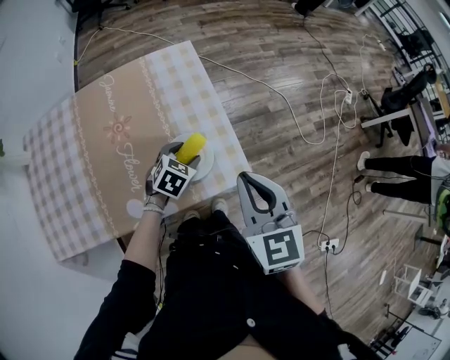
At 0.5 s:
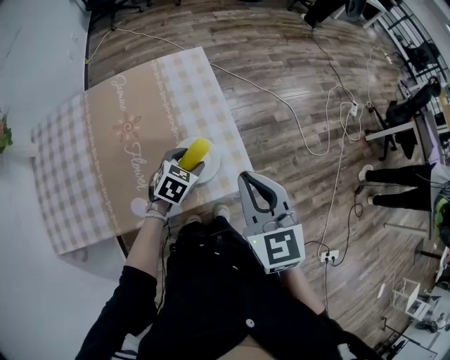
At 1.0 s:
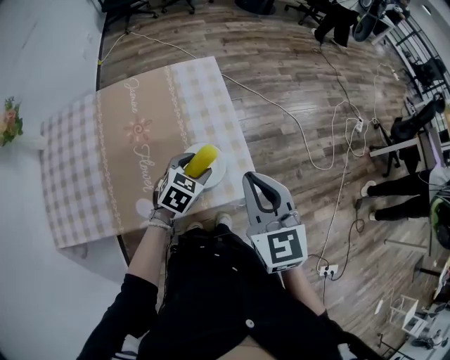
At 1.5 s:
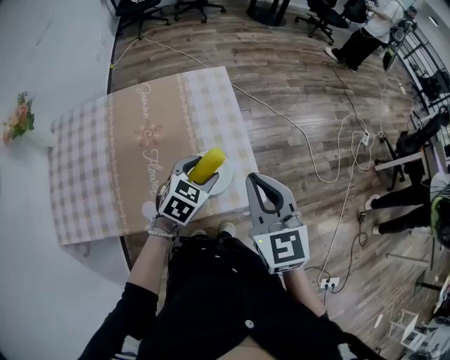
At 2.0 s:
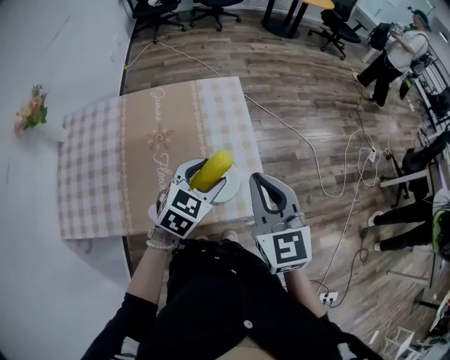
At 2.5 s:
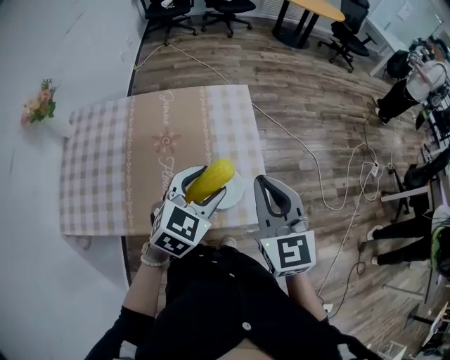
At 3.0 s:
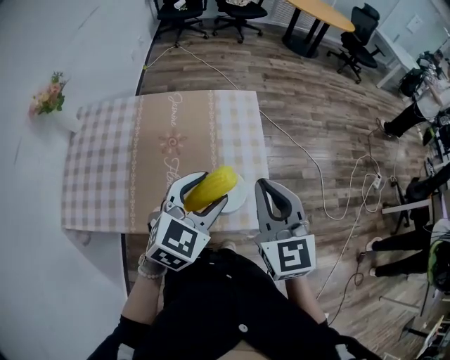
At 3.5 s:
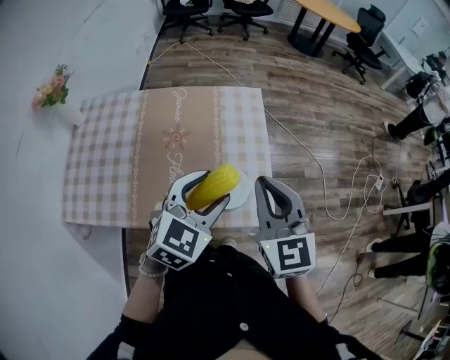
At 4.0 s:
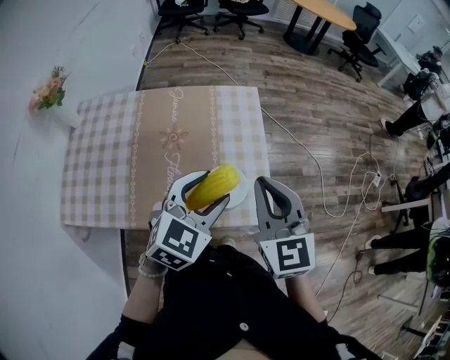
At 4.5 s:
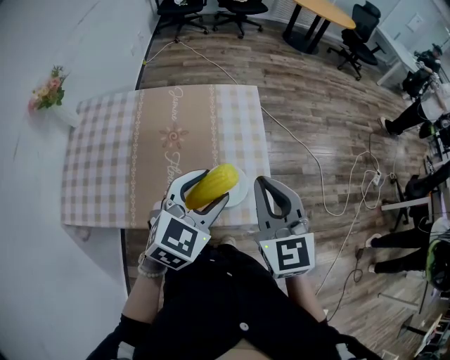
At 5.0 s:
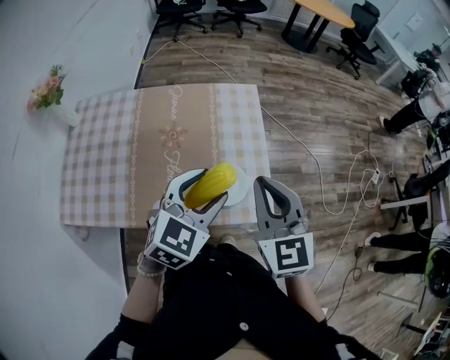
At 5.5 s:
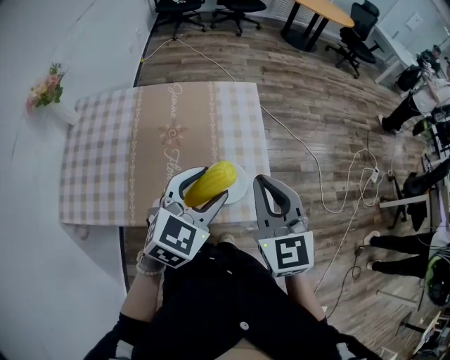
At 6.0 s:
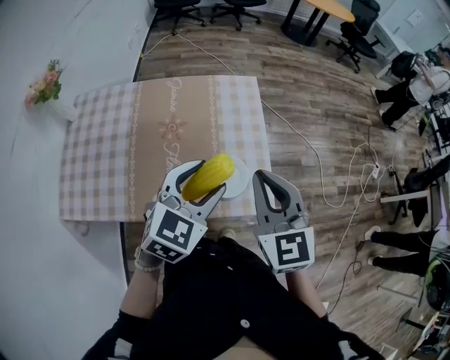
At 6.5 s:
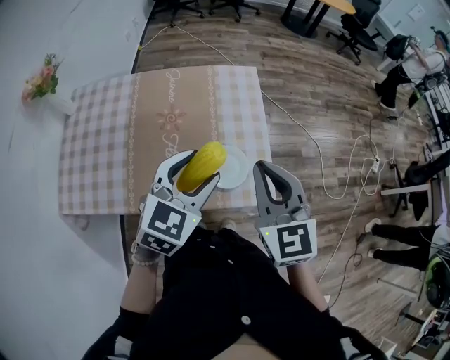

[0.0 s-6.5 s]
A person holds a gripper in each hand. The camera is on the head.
0.0 to 2.0 s: The right gripper changes place by roughly 10 cm; the left gripper heads upward, covering approximately 15 cm.
2.0 to 4.5 s: The left gripper is displaced upward by about 10 cm.
4.5 to 6.5 s: There are only small adjustments of the grippers.

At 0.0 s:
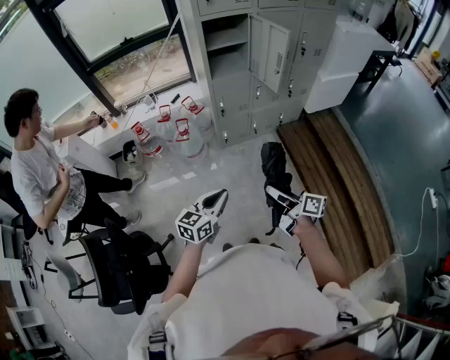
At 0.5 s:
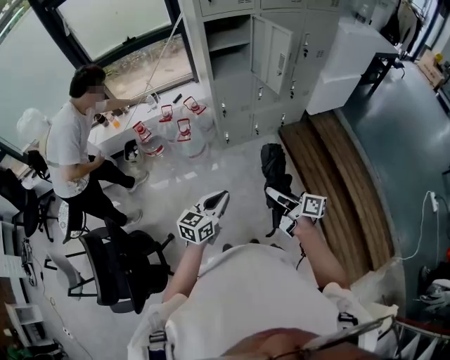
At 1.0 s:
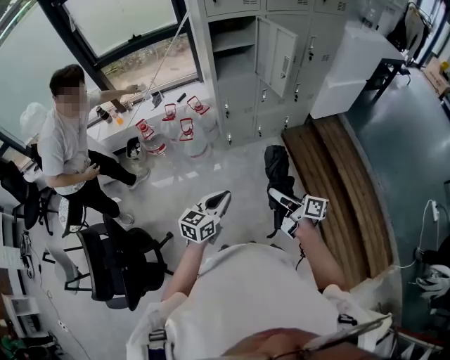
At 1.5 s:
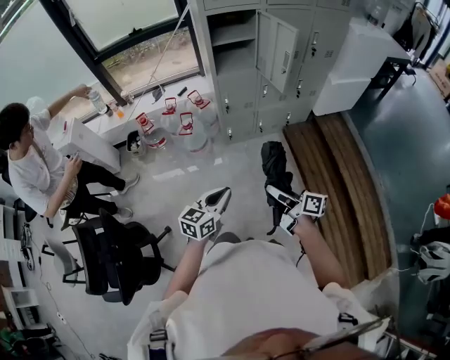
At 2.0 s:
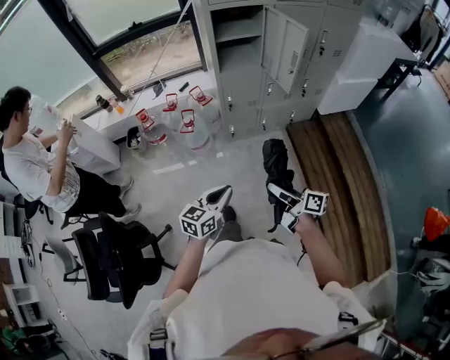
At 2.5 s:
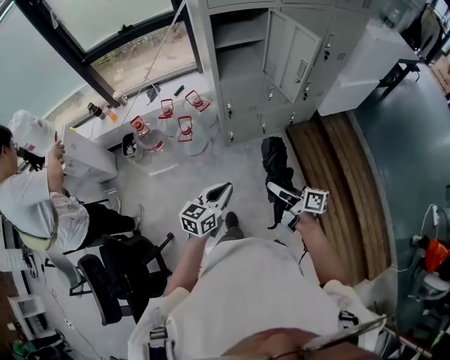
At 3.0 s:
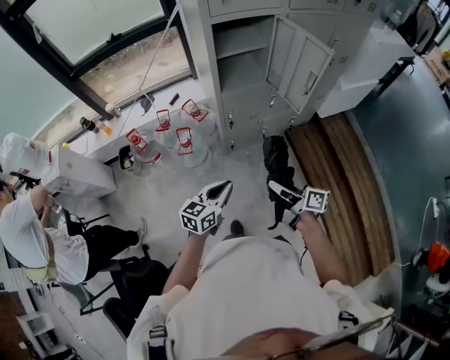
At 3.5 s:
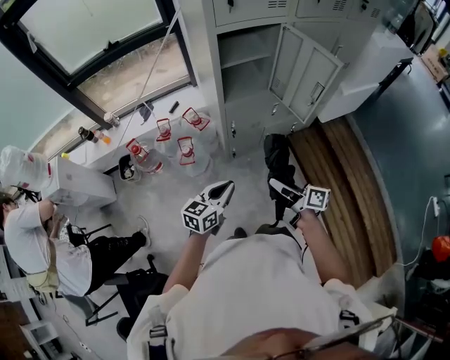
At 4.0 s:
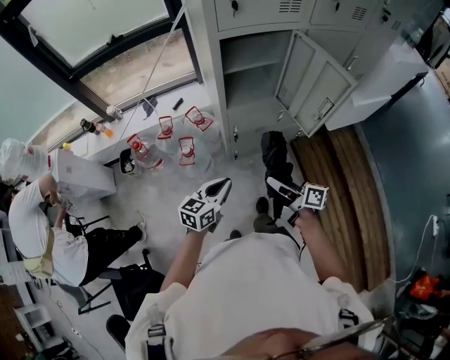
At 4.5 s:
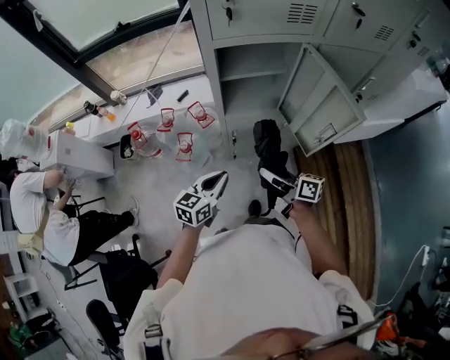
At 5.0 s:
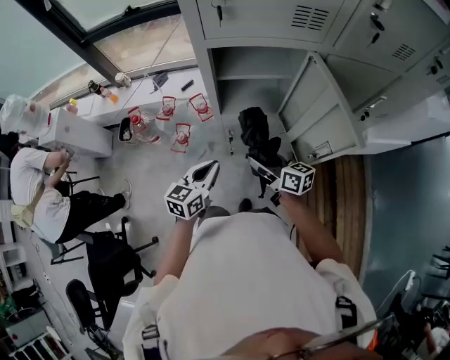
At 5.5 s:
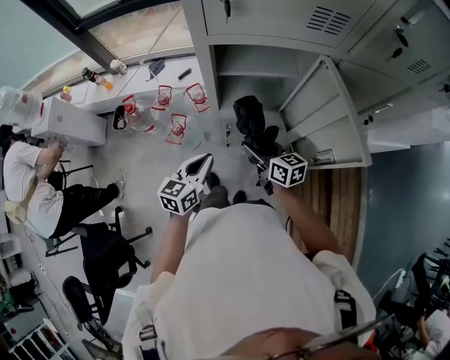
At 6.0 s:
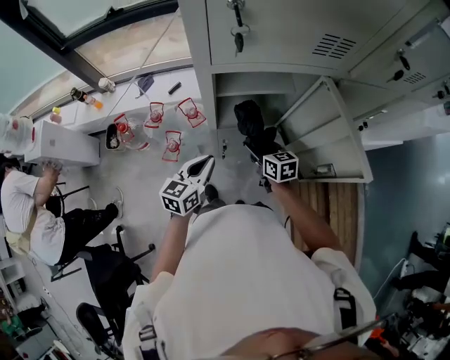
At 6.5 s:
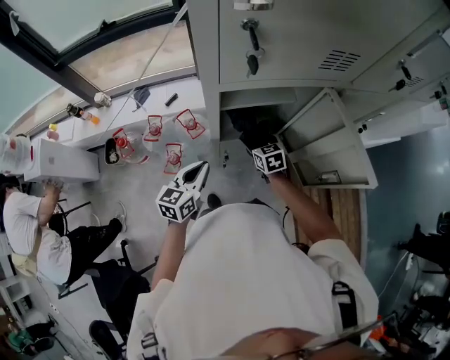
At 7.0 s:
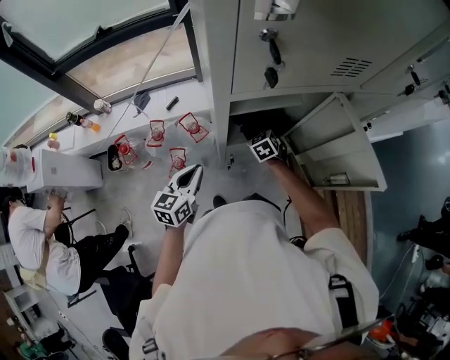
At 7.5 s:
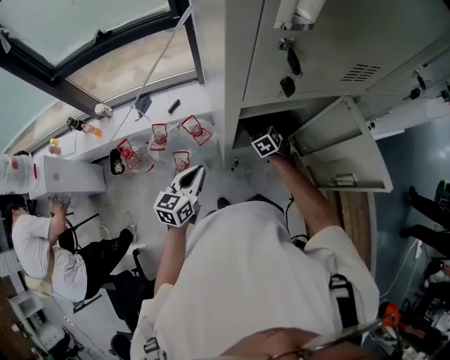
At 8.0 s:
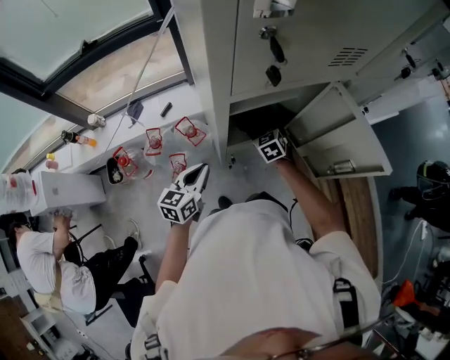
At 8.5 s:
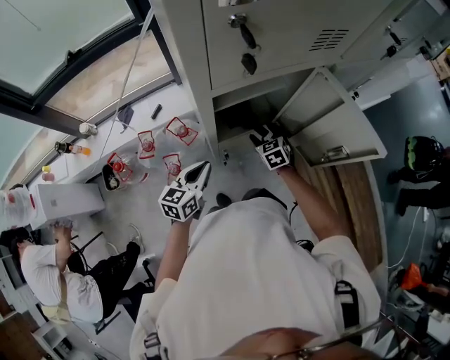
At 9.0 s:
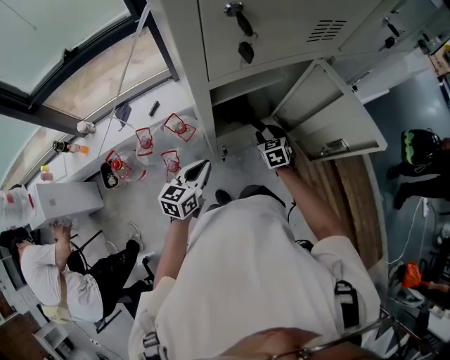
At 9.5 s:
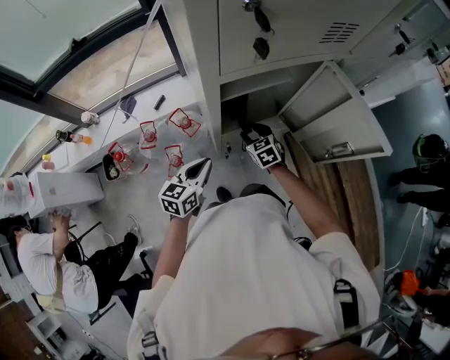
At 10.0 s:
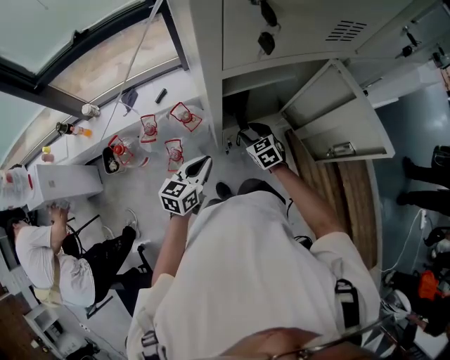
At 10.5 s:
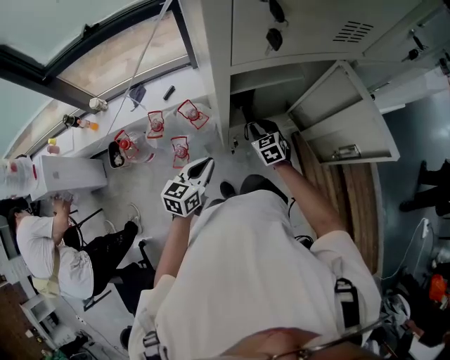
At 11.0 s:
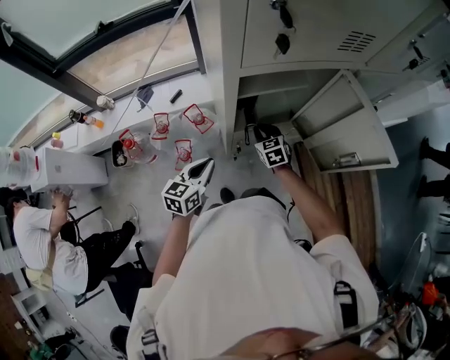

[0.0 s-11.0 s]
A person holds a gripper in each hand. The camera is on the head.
0.0 to 2.0 s: The two grippers go about 5 cm forward.
2.0 to 3.5 s: The two grippers go about 25 cm forward.
3.5 to 5.5 s: Both grippers move forward, some 25 cm. The right gripper turns by about 40 degrees, while the left gripper swivels approximately 30 degrees.
5.5 to 7.5 s: The right gripper travels forward and downward by about 25 cm, and changes its angle by about 50 degrees. The left gripper moves forward and to the left, some 15 cm.
7.5 to 9.0 s: The left gripper is displaced to the right by roughly 5 cm, while the right gripper goes approximately 15 cm to the right and backward, rotates some 20 degrees, and closes up.
9.0 to 11.0 s: The right gripper goes roughly 10 cm to the left, and closes.

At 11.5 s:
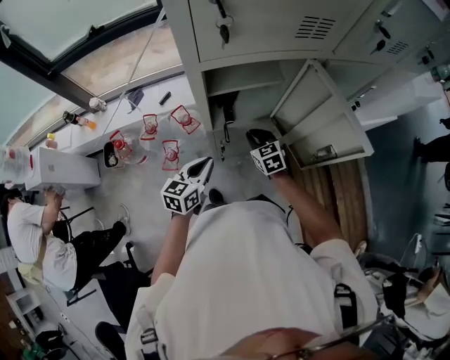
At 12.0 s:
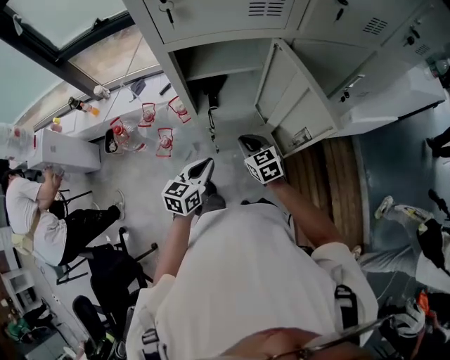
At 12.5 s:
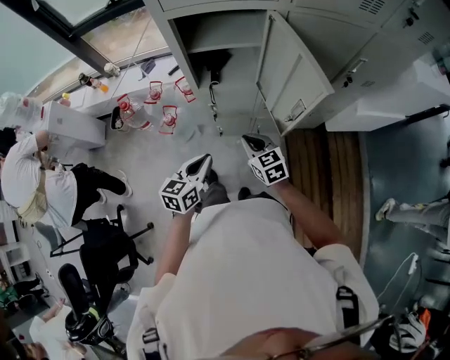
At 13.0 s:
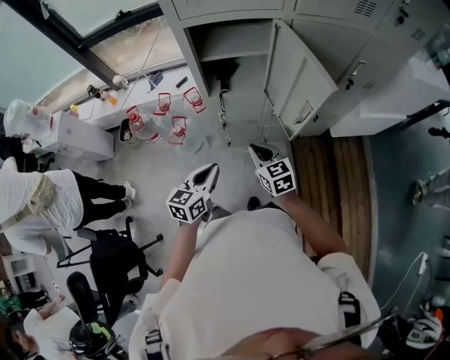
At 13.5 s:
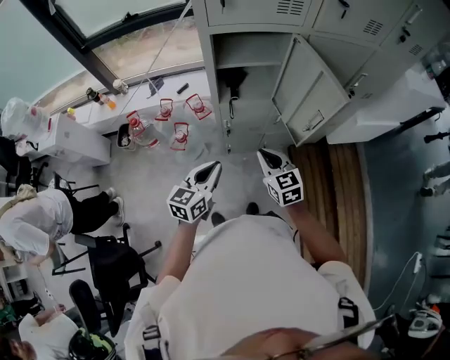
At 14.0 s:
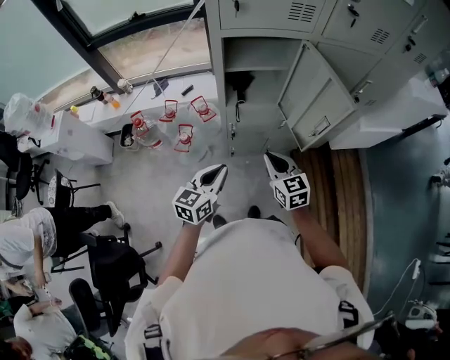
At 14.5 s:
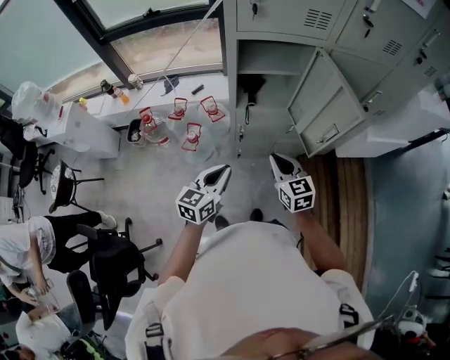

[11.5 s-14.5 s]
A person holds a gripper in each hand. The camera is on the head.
11.5 to 13.0 s: Both grippers travel together backward, about 20 cm.
13.0 to 14.5 s: The right gripper travels upward by about 5 cm, while the left gripper moves to the left, approximately 5 cm.

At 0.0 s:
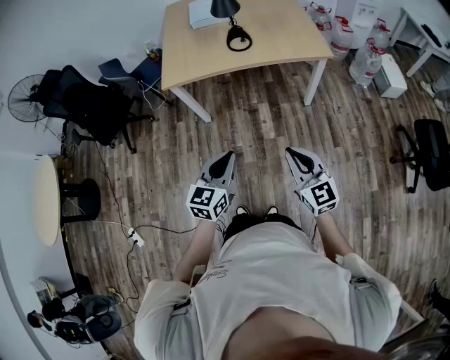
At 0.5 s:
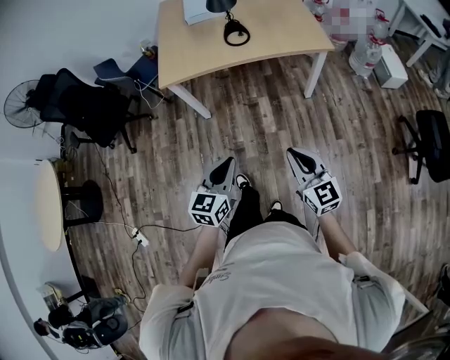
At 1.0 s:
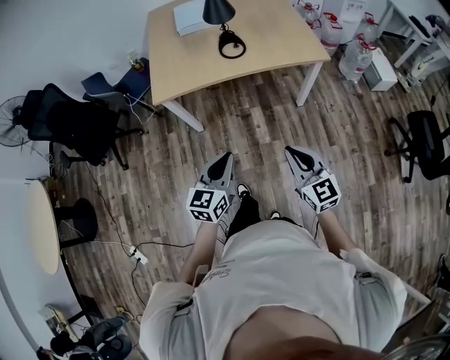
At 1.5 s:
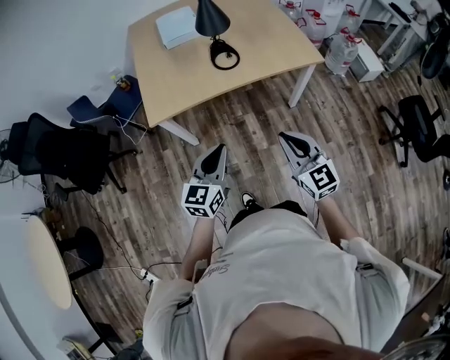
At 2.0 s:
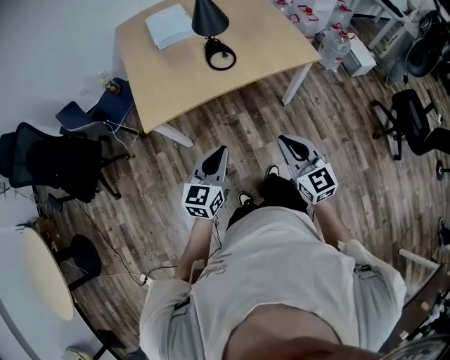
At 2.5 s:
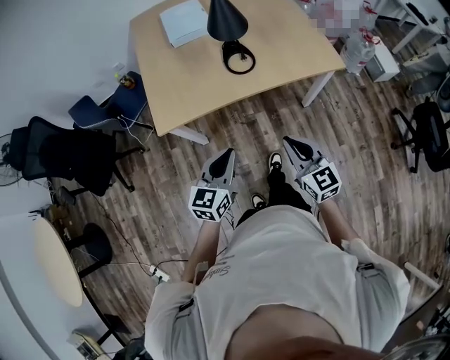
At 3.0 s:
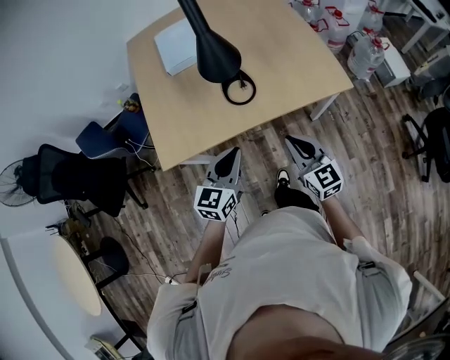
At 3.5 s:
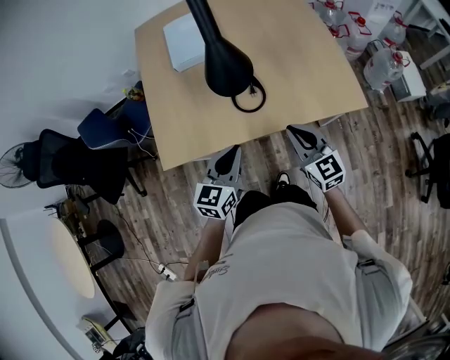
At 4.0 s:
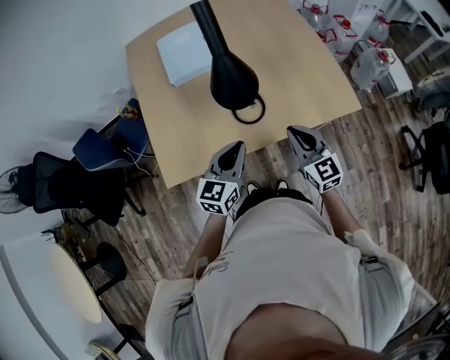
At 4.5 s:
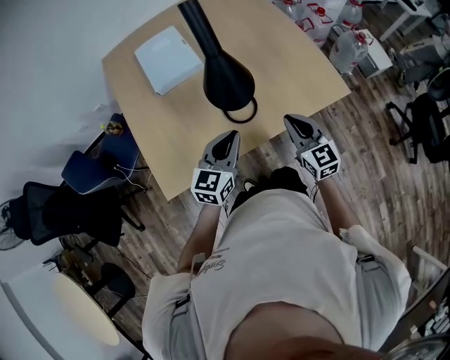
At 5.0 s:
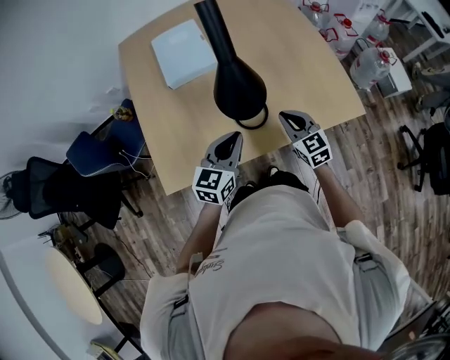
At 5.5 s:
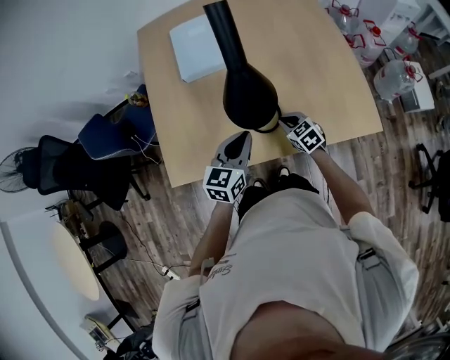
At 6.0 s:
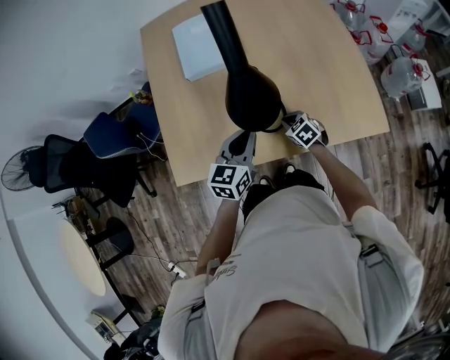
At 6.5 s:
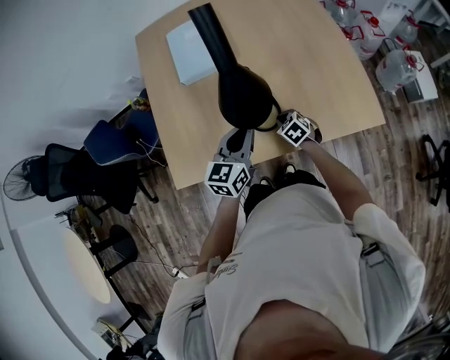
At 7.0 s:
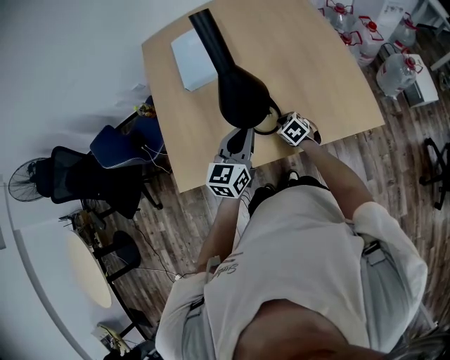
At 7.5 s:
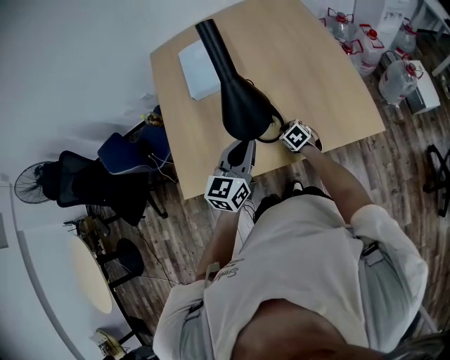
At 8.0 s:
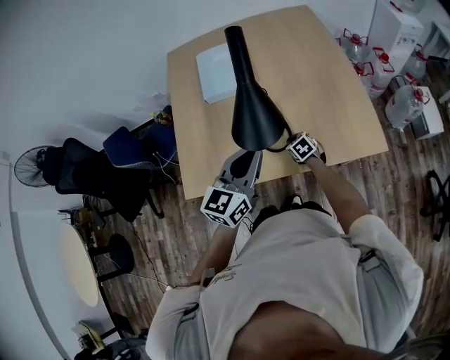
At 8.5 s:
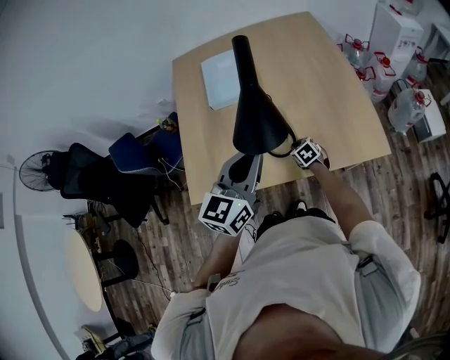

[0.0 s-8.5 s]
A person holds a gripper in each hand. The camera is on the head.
0.0 to 2.0 s: Both grippers travel together forward and to the left, about 25 cm.
2.0 to 4.0 s: The grippers both shift forward by roughly 35 cm.
4.0 to 6.5 s: The left gripper shifts by about 10 cm, while the right gripper travels downward by some 25 cm, and angles its fingers downward, by roughly 40 degrees.
6.5 to 8.5 s: The left gripper moves upward and backward, roughly 15 cm.
